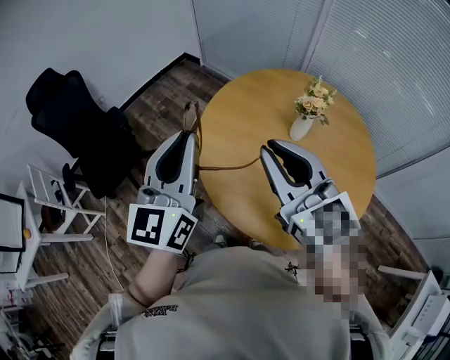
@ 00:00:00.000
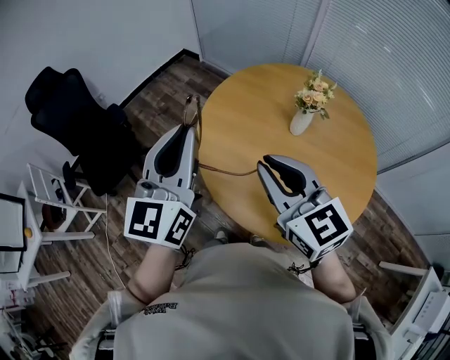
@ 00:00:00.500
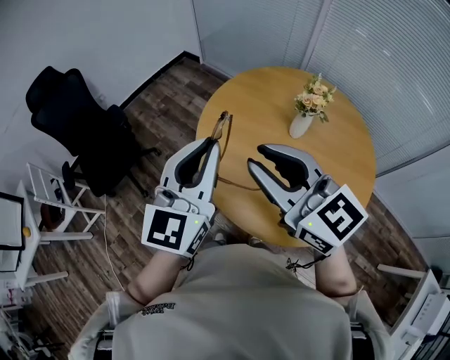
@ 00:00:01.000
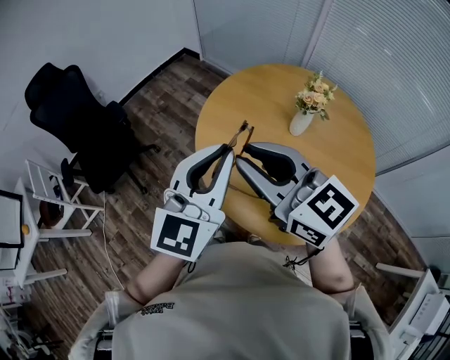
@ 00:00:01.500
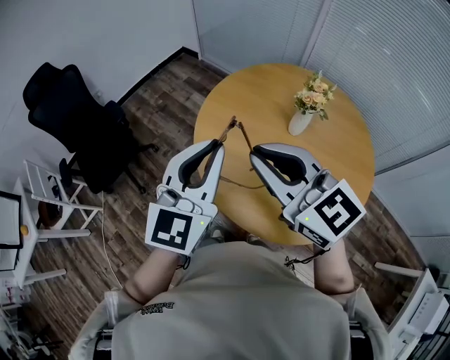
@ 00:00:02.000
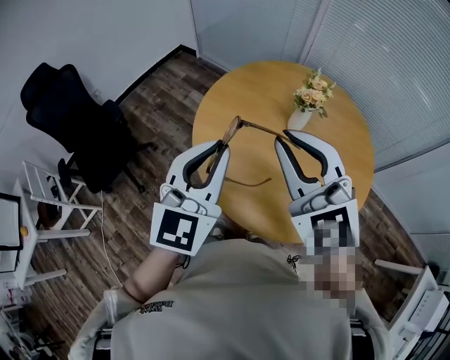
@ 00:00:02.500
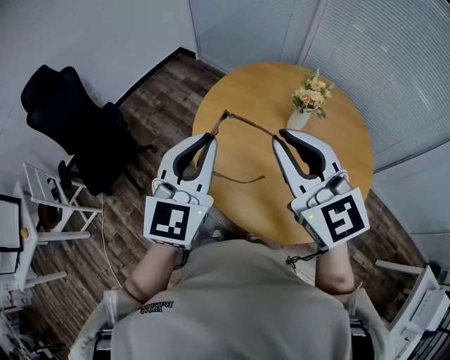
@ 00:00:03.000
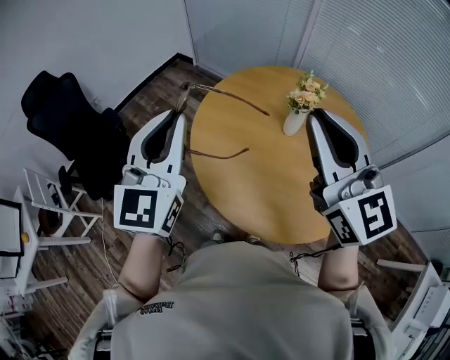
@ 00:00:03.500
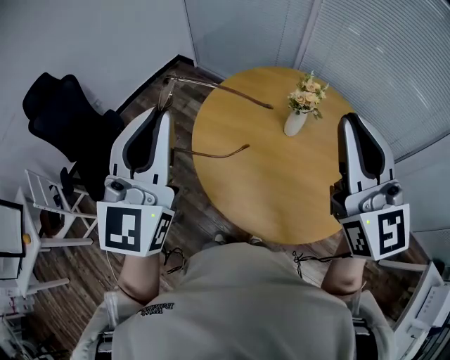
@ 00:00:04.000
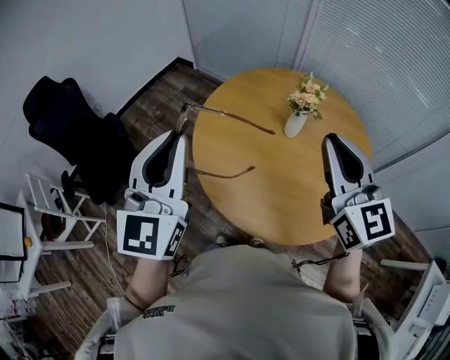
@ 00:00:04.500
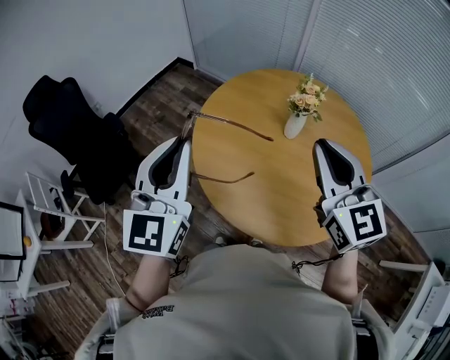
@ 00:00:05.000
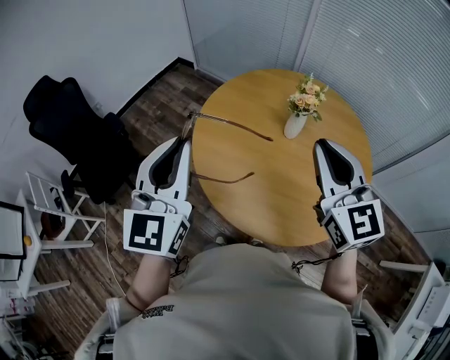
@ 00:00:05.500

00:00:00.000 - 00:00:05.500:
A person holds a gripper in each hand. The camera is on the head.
00:00:00.000 - 00:00:02.000: The left gripper goes about 5 cm to the right.
00:00:02.000 - 00:00:03.500: The right gripper travels to the right and upward by roughly 15 cm, and swivels about 30 degrees, while the left gripper shifts approximately 10 cm upward and to the left.
00:00:03.500 - 00:00:05.500: The left gripper goes upward and returns, about 5 cm each way; the right gripper shifts some 10 cm downward.

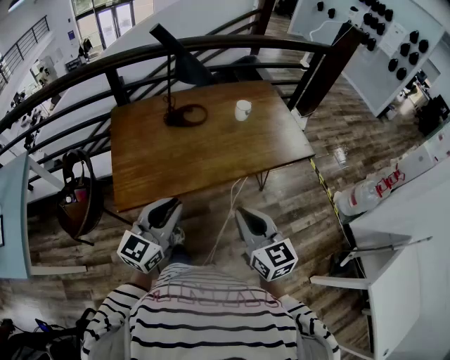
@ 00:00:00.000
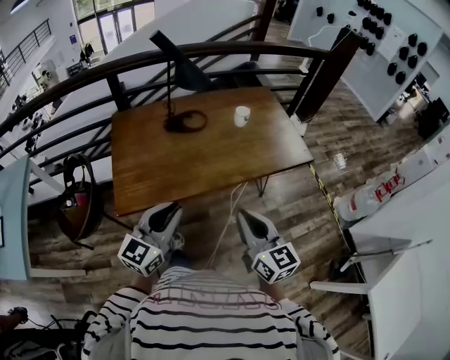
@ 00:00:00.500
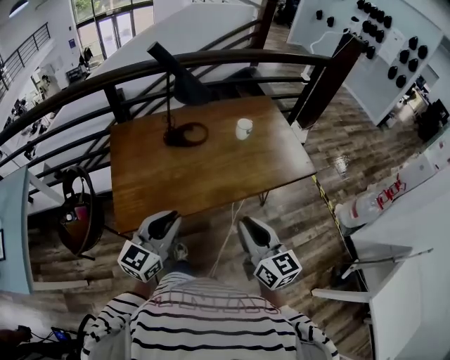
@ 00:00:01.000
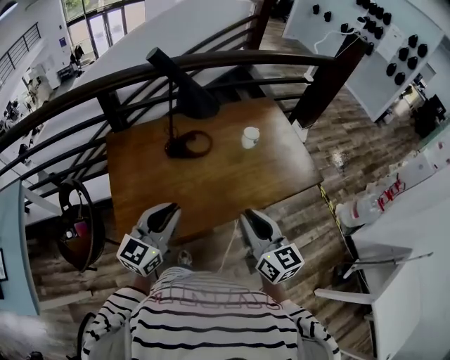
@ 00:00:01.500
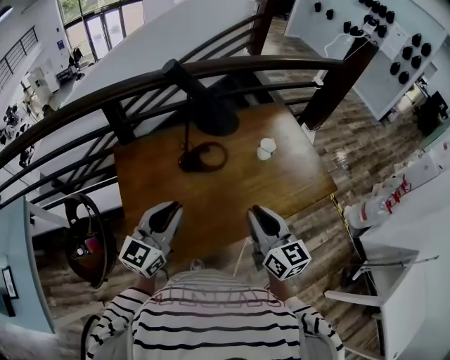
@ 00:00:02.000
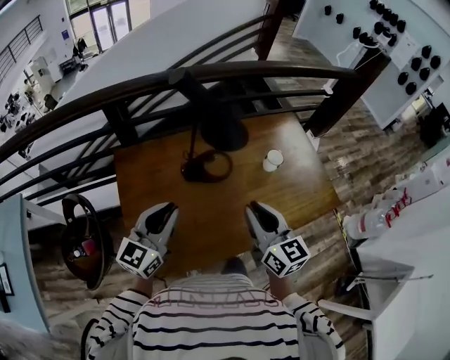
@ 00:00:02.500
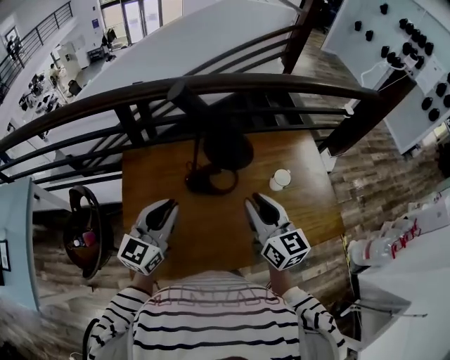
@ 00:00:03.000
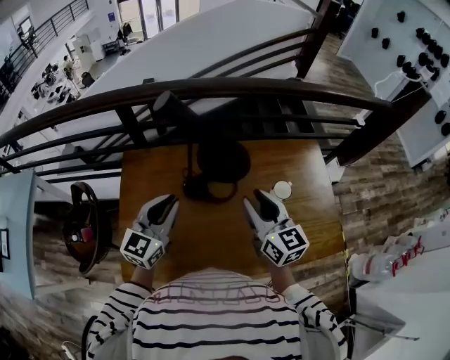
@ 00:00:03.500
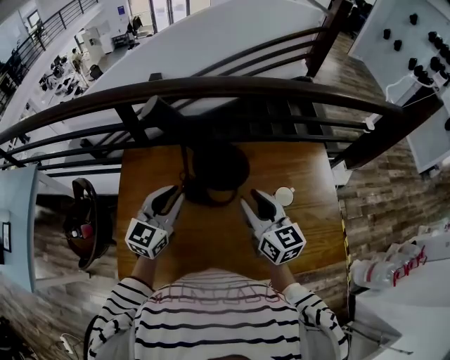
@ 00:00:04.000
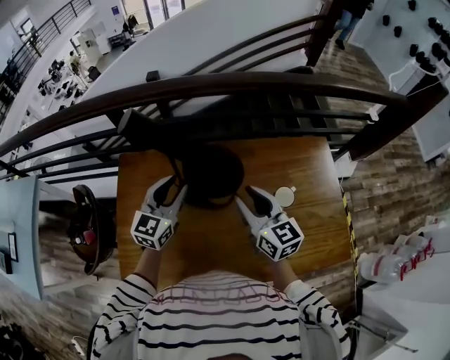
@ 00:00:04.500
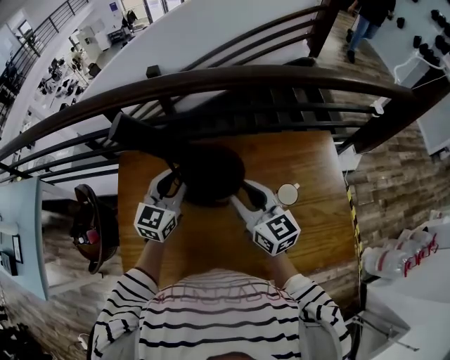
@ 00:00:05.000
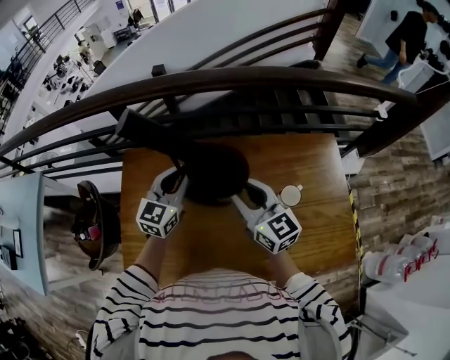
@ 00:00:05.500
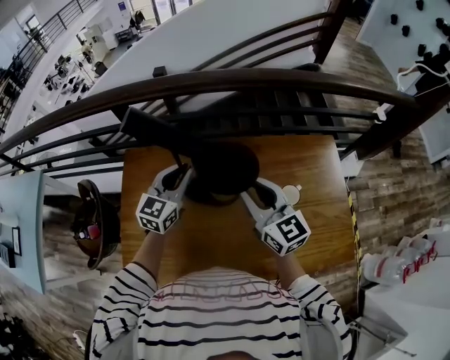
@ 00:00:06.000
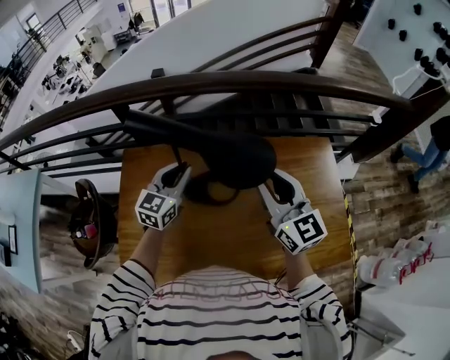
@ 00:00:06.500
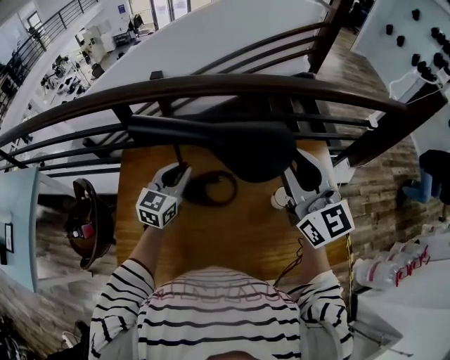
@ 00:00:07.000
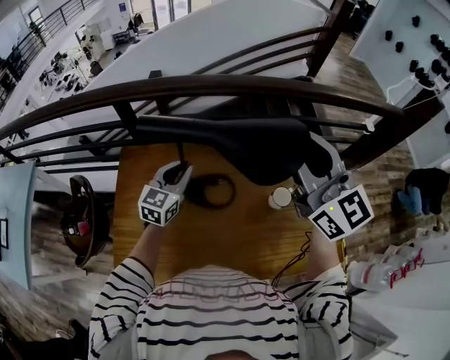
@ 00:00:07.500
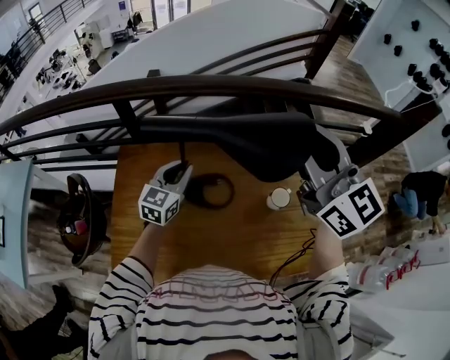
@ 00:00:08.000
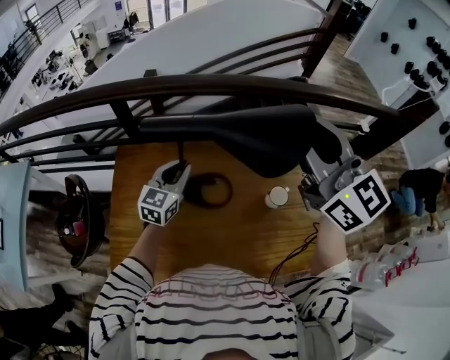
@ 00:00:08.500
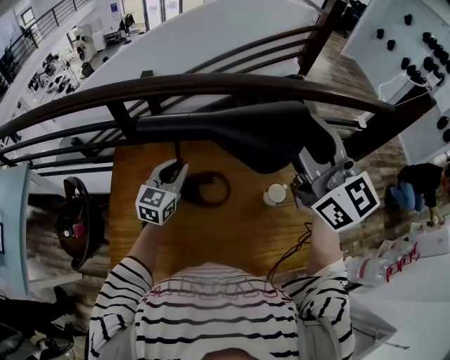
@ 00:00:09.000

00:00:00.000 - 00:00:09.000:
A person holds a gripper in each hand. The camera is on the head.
00:00:00.000 - 00:00:02.000: The grippers both shift forward and to the left by about 30 cm.
00:00:02.000 - 00:00:04.500: Both grippers travel together forward, approximately 30 cm. The left gripper swivels about 30 degrees, and opens. The right gripper rotates approximately 20 degrees.
00:00:04.500 - 00:00:07.000: The left gripper closes up. The right gripper travels upward by some 15 cm, and turns by approximately 20 degrees.
00:00:07.000 - 00:00:09.000: The right gripper travels upward by some 10 cm.

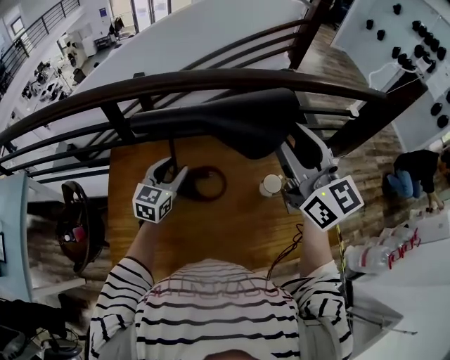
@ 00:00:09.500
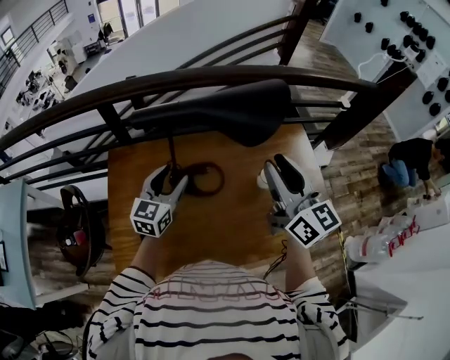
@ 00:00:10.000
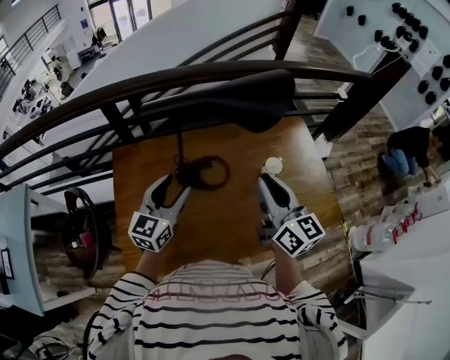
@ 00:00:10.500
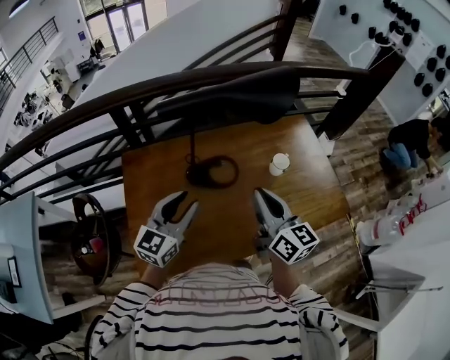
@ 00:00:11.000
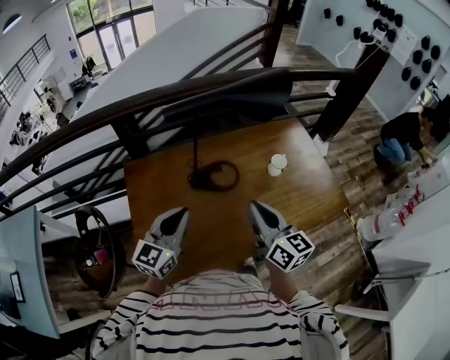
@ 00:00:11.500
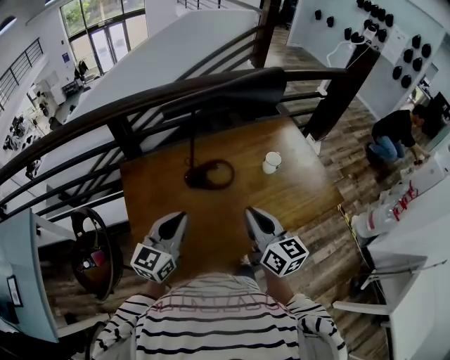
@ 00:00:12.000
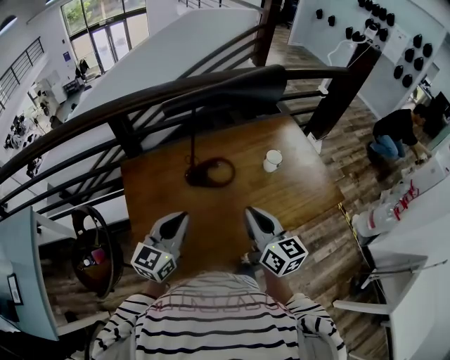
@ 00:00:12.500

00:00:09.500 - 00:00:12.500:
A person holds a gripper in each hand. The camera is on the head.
00:00:09.500 - 00:00:11.000: The right gripper heads backward, downward and to the left, covering roughly 25 cm, changes its angle by approximately 30 degrees, and closes its fingers; the left gripper is displaced backward by approximately 20 cm.
00:00:11.000 - 00:00:12.500: Both grippers travel together backward, some 10 cm. The left gripper closes.

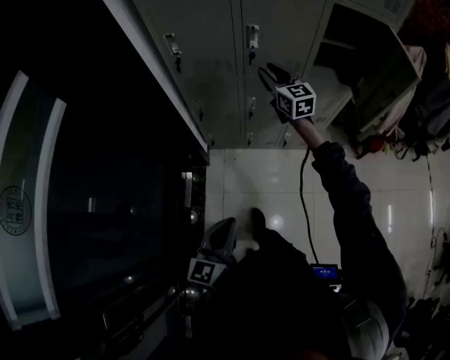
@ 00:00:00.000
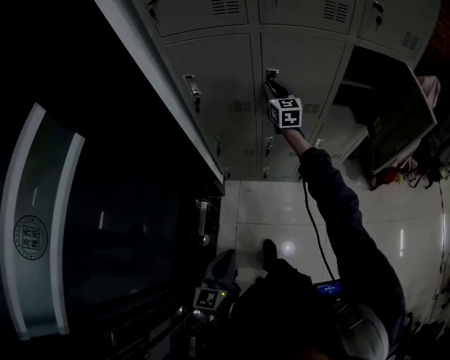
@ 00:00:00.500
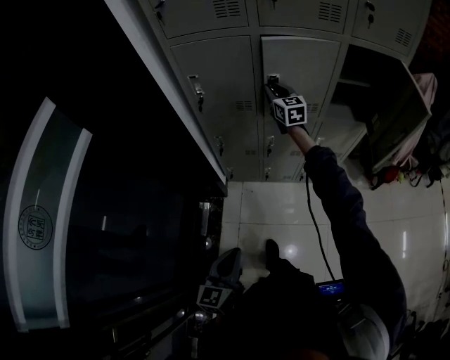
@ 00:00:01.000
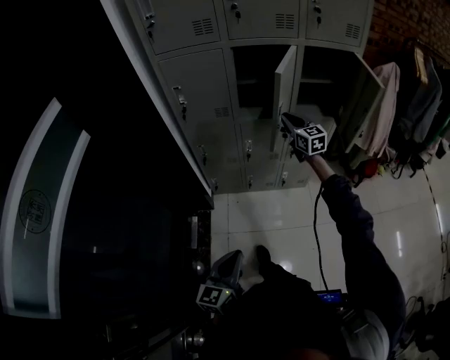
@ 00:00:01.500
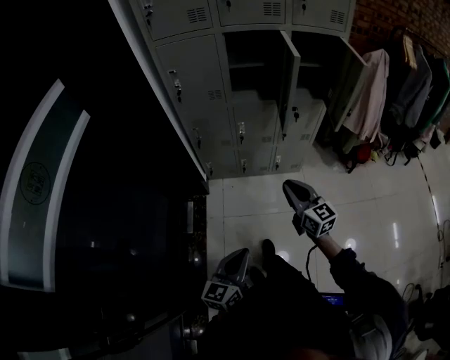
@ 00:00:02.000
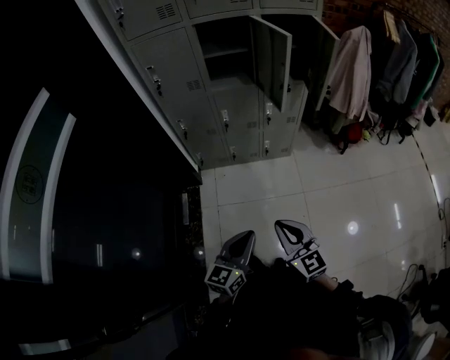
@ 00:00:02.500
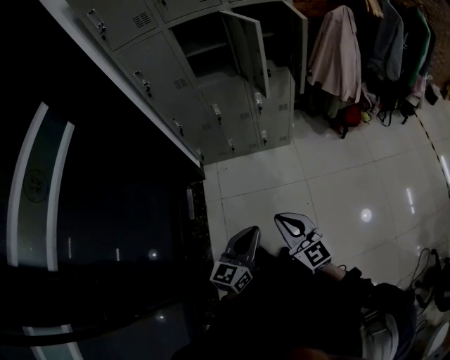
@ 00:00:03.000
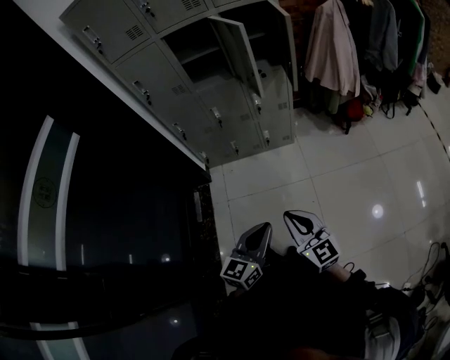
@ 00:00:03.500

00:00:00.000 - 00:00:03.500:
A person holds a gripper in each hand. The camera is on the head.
00:00:00.000 - 00:00:02.000: The left gripper is displaced backward by about 20 cm, while the right gripper goes some 40 cm backward, and closes its fingers.
00:00:02.000 - 00:00:03.500: The left gripper shifts roughly 20 cm to the right; the right gripper shifts roughly 30 cm backward and to the right.

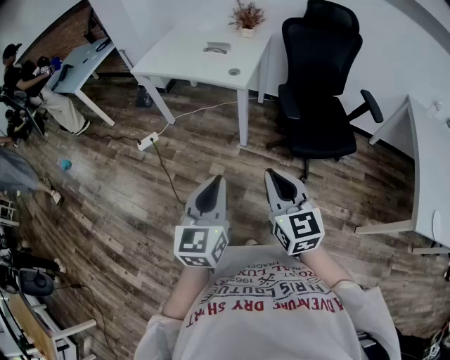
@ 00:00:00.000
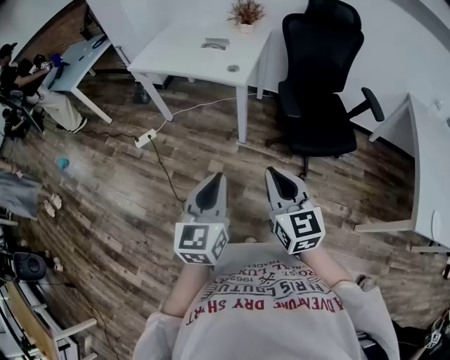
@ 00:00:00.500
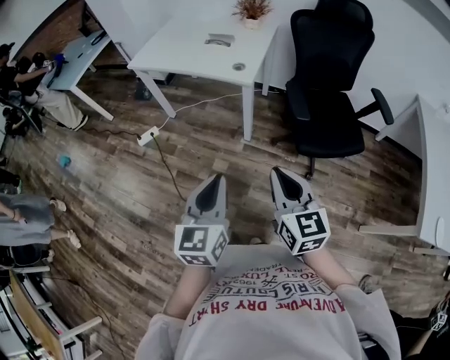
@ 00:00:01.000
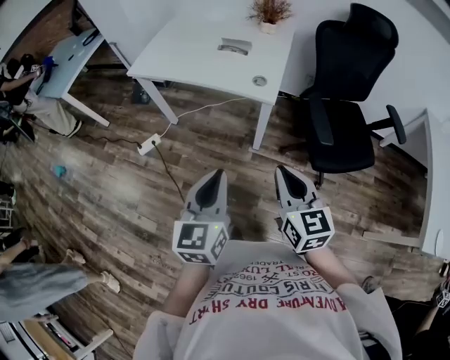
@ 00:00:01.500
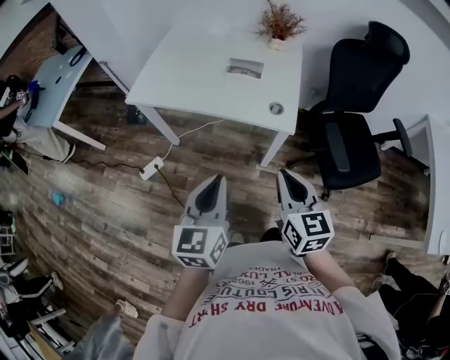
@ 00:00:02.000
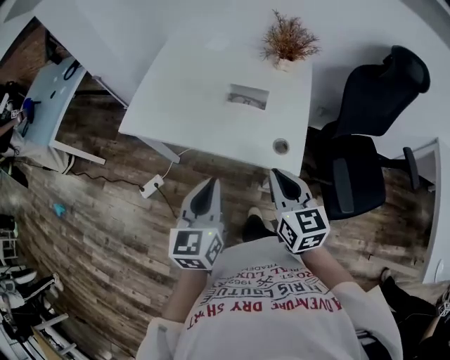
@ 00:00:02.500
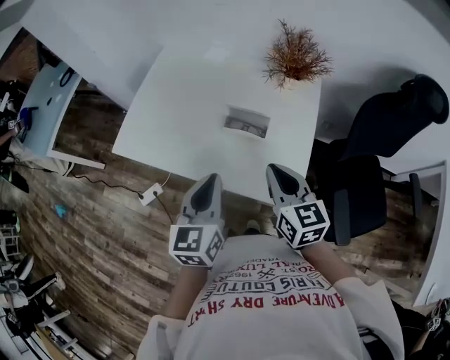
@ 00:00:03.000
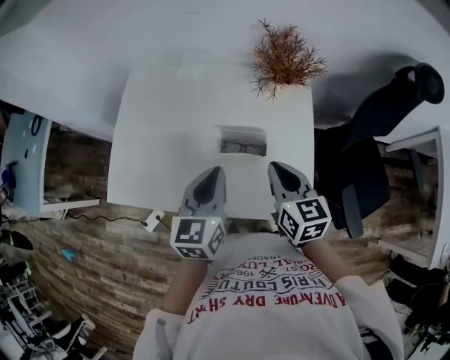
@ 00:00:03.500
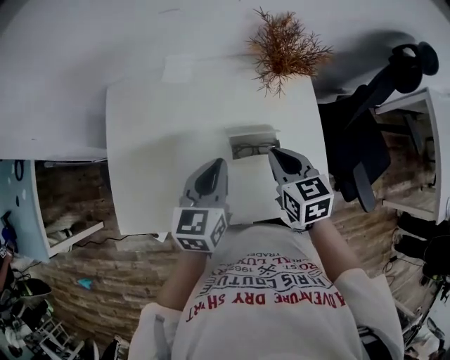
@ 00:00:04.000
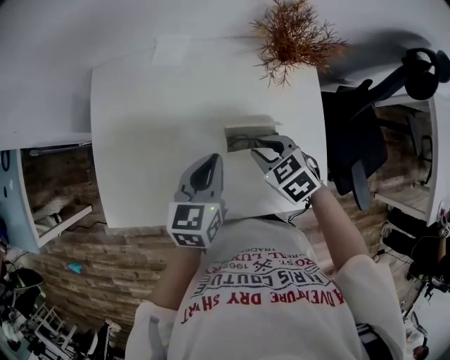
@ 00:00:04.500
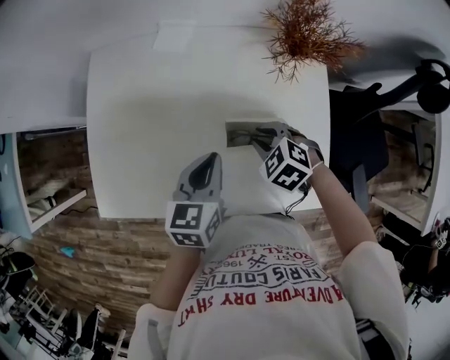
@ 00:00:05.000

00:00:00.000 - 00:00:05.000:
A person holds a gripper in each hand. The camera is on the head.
00:00:00.000 - 00:00:02.500: Both grippers are carried forward, approximately 60 cm.
00:00:02.500 - 00:00:05.000: The right gripper travels forward and downward by approximately 35 cm, tips its fingers downward by some 50 degrees, and opens; the left gripper goes some 35 cm forward, and rotates approximately 30 degrees.
